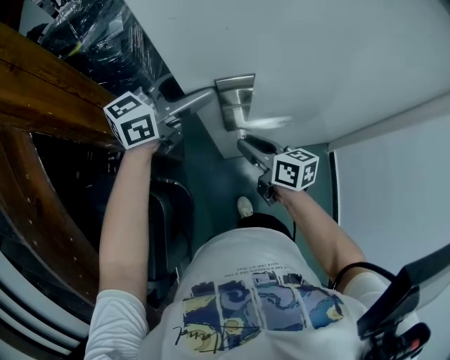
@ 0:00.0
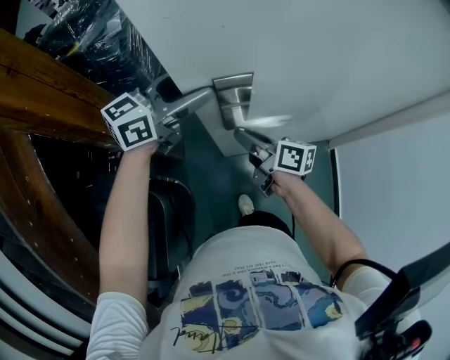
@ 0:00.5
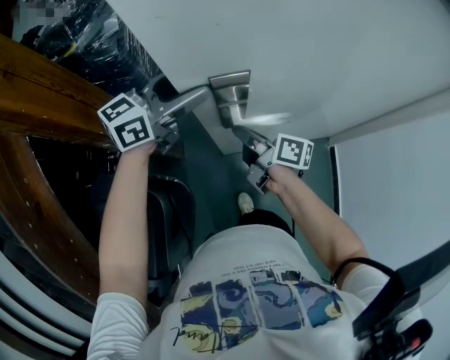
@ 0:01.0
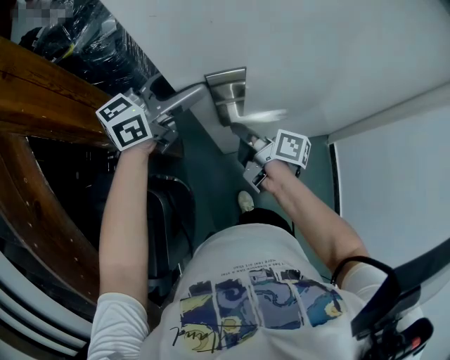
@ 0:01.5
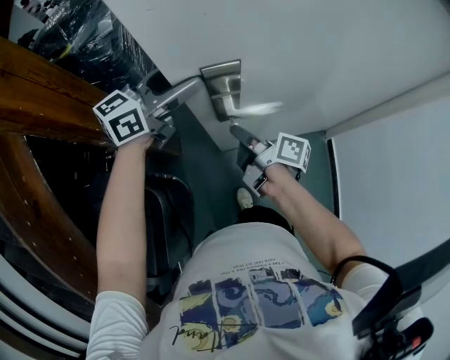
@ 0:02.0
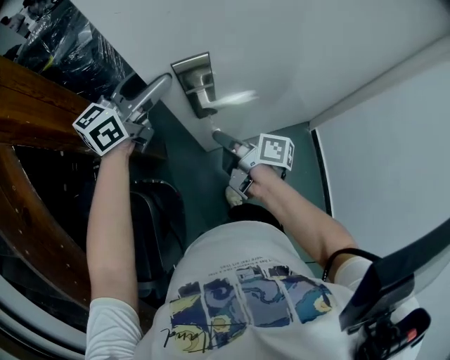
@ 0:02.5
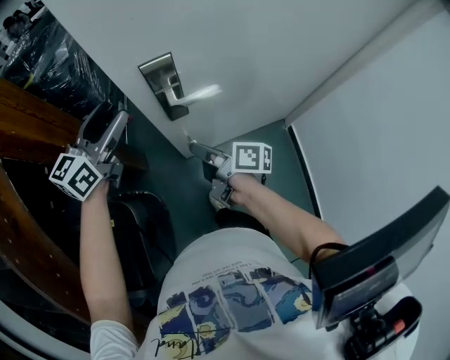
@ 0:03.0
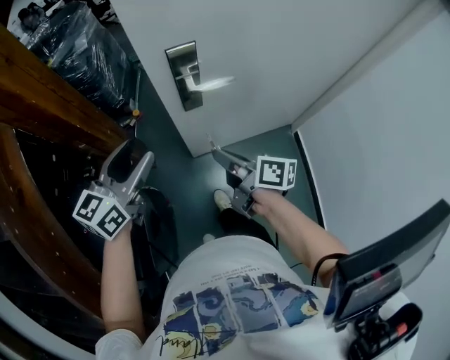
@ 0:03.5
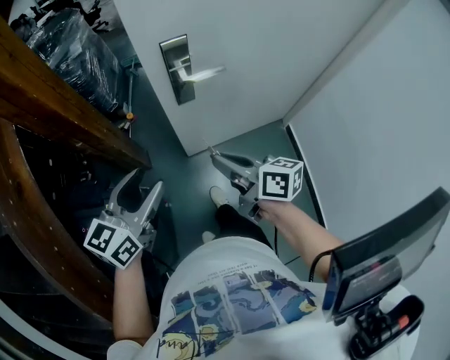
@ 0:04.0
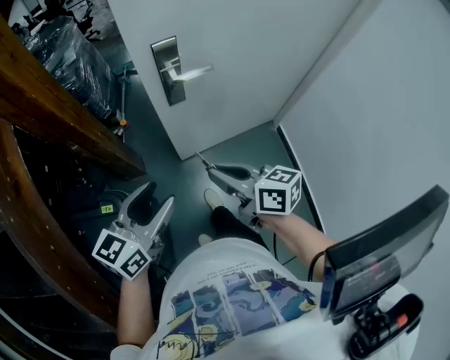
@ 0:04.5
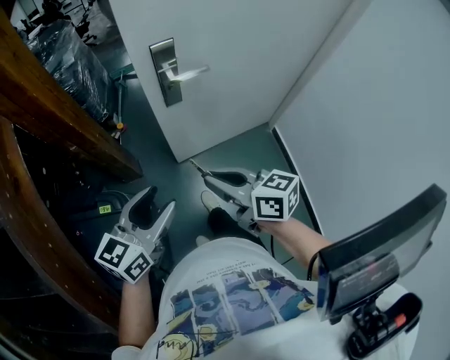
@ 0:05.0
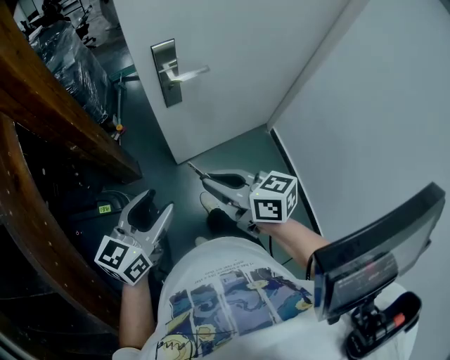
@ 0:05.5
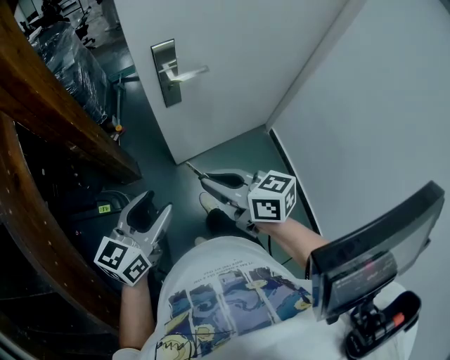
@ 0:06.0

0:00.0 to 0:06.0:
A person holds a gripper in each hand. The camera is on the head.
0:00.0 to 0:02.0: The right gripper twists roughly 40 degrees clockwise, seen from behind.
0:02.0 to 0:04.0: The right gripper goes about 25 cm backward and upward, and swivels approximately 40 degrees. The left gripper heads backward, covering roughly 30 cm.
0:04.0 to 0:06.0: The two grippers go roughly 10 cm backward.

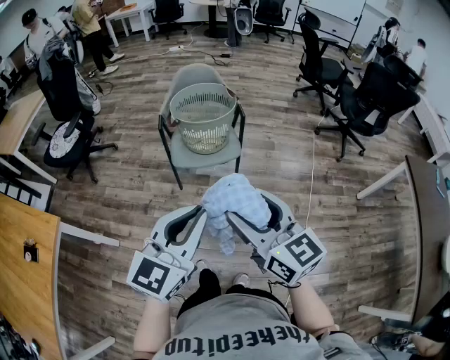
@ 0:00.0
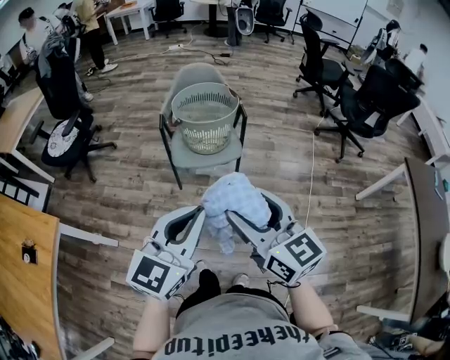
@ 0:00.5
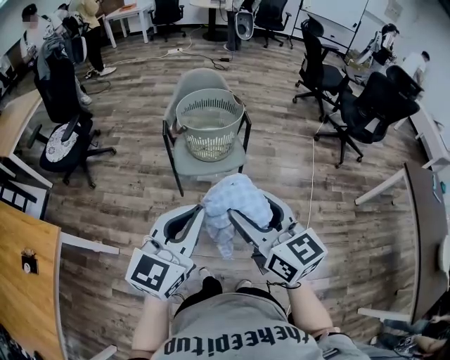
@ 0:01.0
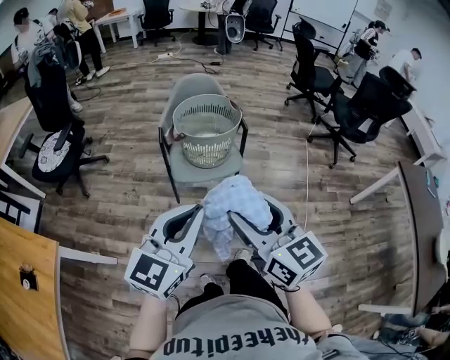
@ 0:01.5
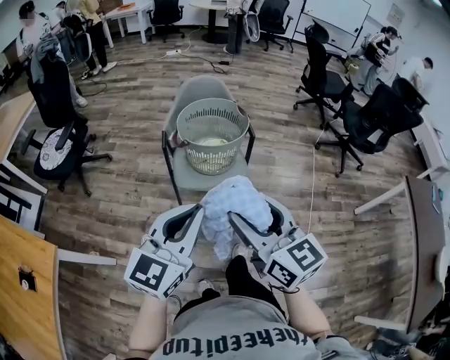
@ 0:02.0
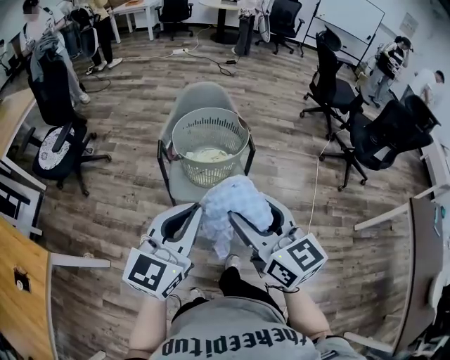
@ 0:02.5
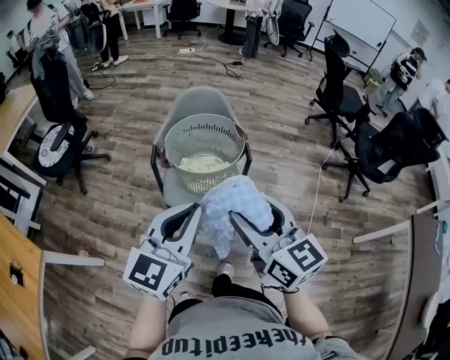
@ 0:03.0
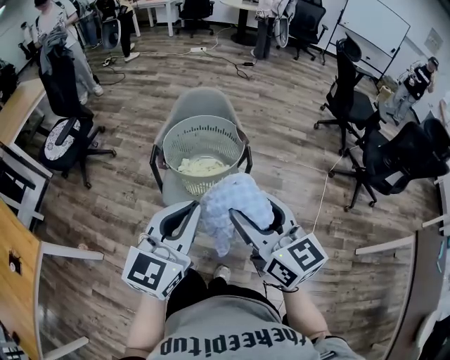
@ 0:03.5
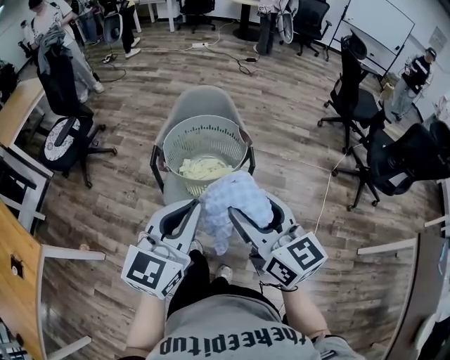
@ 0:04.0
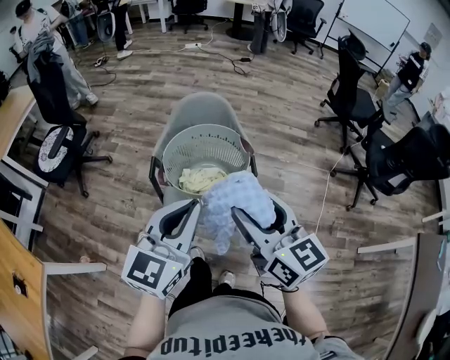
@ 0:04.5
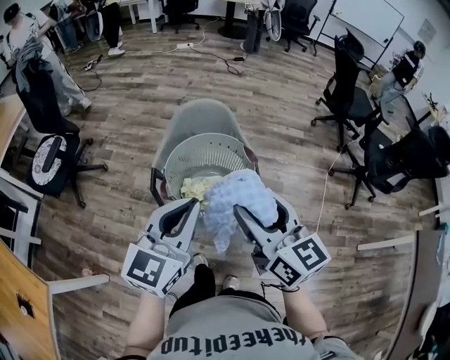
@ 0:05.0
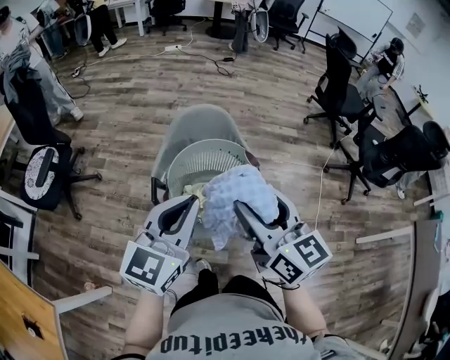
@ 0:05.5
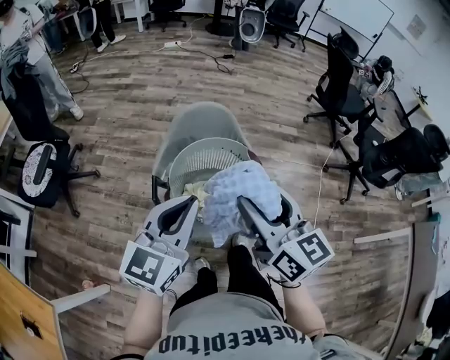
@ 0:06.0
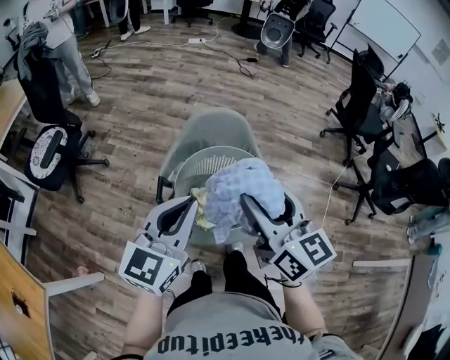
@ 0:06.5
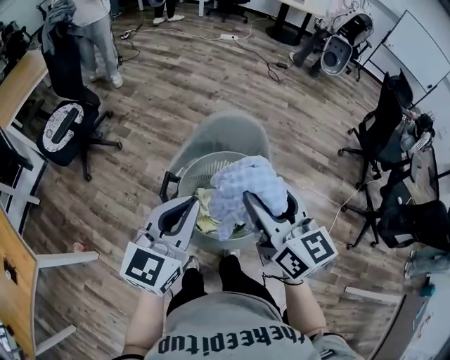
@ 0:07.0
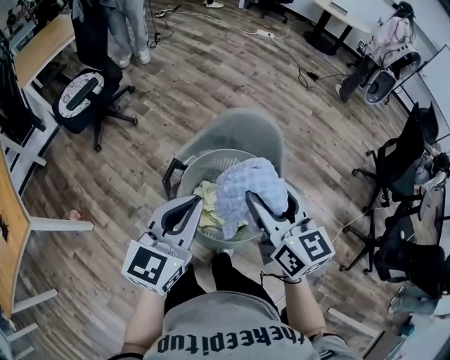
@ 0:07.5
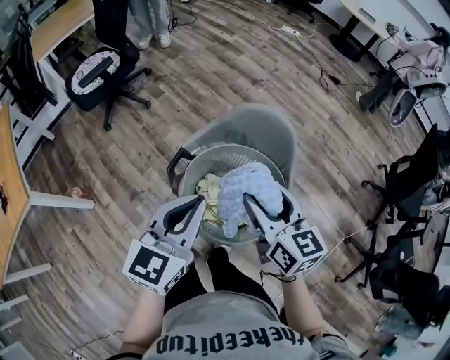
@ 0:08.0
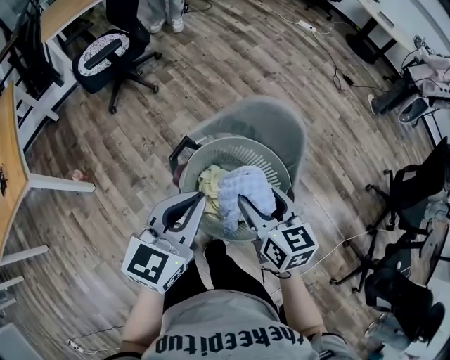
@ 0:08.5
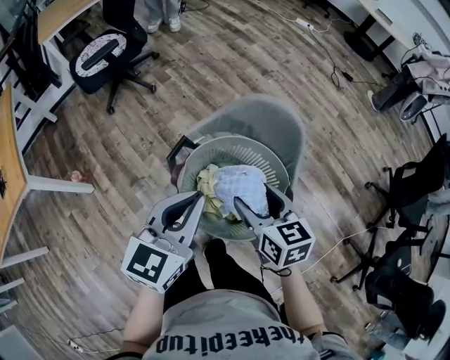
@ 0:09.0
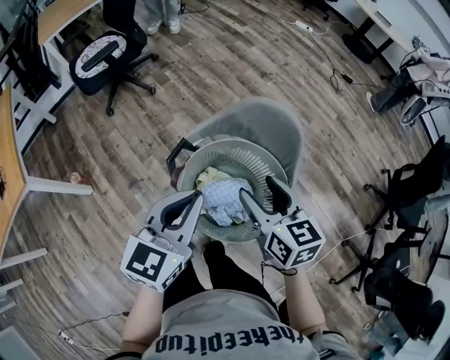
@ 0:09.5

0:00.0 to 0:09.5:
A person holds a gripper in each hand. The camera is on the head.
0:00.0 to 0:02.0: The two grippers go approximately 15 cm forward and to the left.
0:02.0 to 0:04.0: Both grippers travel together forward and to the right, approximately 20 cm.
0:04.0 to 0:05.5: The two grippers go roughly 15 cm forward and to the left.
0:05.5 to 0:07.5: The right gripper moves about 15 cm, and turns by some 30 degrees. The left gripper ends up approximately 10 cm from where it was, and changes its angle by some 30 degrees.
0:07.5 to 0:09.5: The right gripper shifts about 10 cm downward.

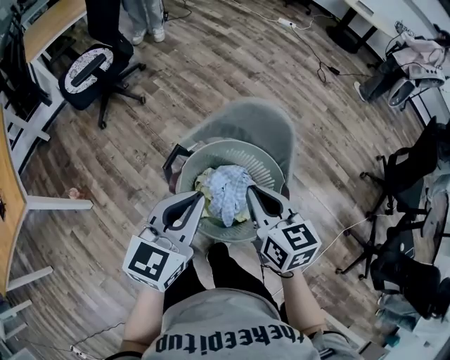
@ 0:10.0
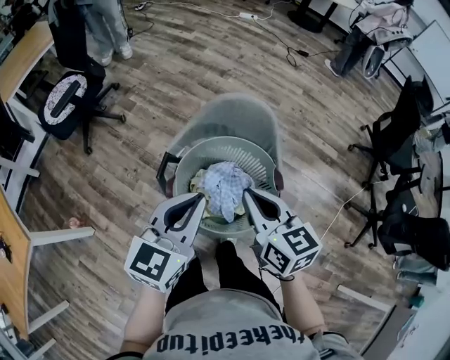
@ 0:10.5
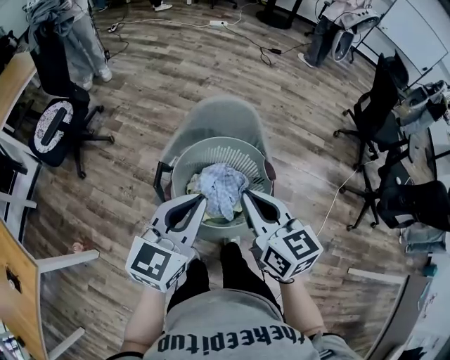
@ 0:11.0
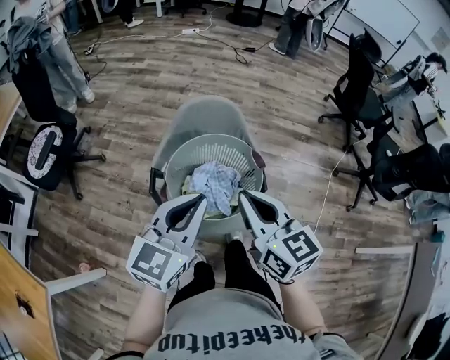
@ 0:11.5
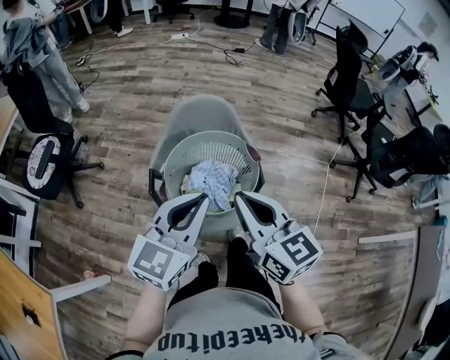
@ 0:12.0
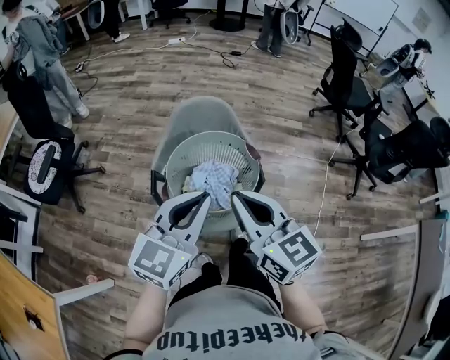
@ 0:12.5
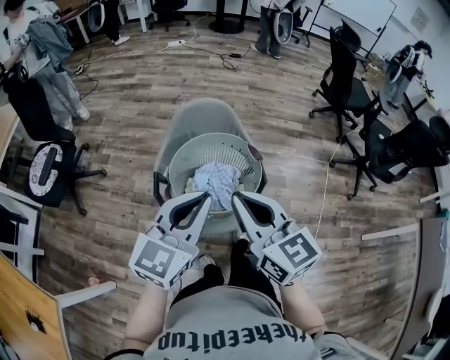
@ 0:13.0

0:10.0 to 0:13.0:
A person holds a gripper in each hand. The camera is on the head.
0:10.0 to 0:11.5: The right gripper moves about 15 cm, and rotates some 30 degrees; the left gripper changes place by about 10 cm, and swivels approximately 30 degrees.
0:11.5 to 0:13.0: The right gripper goes some 5 cm backward.

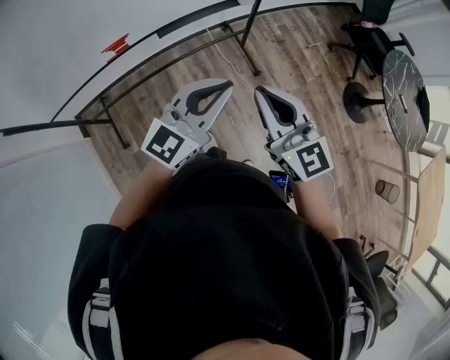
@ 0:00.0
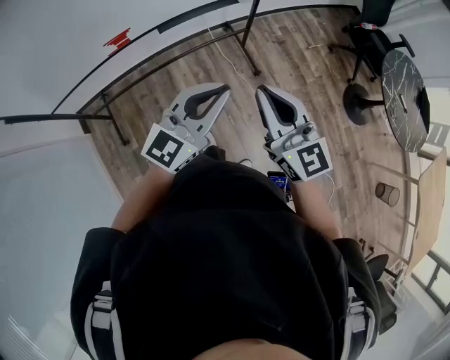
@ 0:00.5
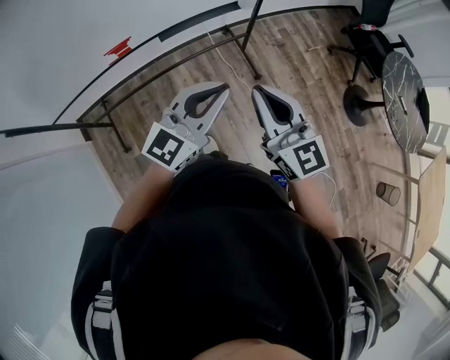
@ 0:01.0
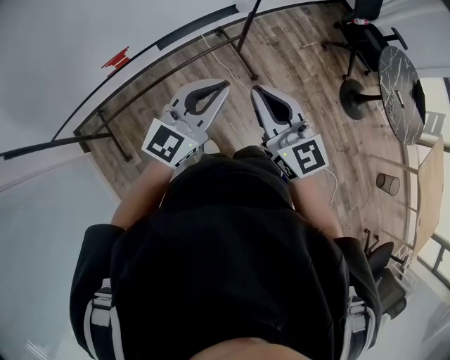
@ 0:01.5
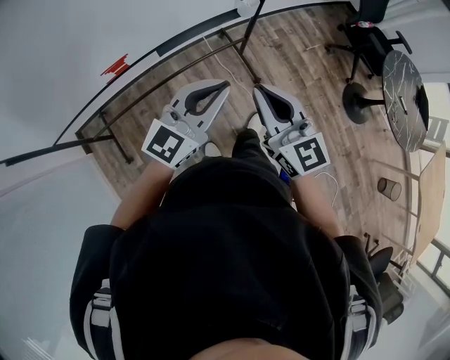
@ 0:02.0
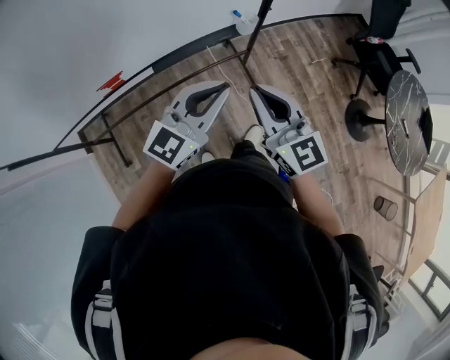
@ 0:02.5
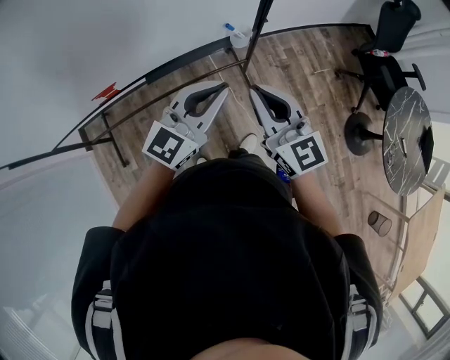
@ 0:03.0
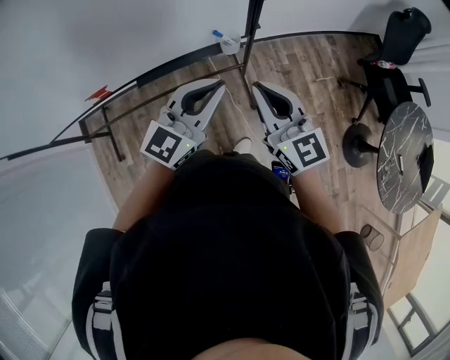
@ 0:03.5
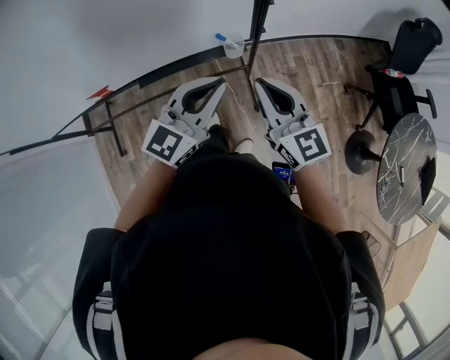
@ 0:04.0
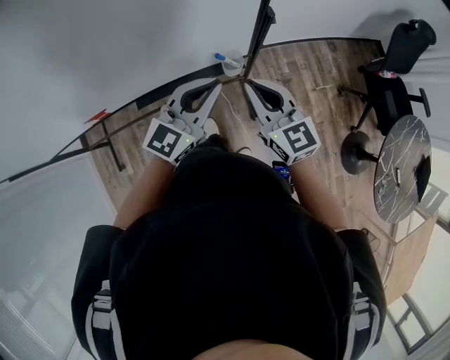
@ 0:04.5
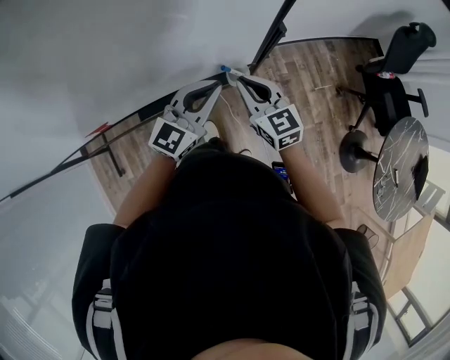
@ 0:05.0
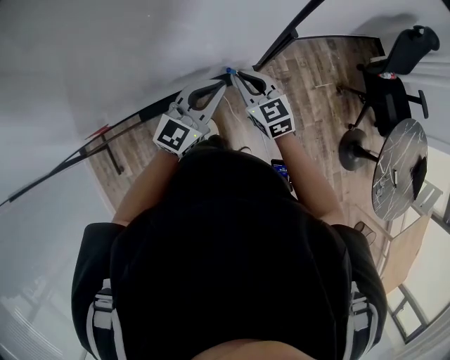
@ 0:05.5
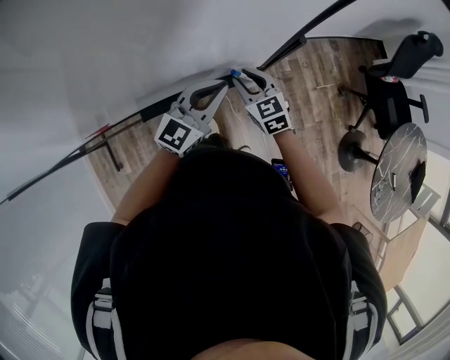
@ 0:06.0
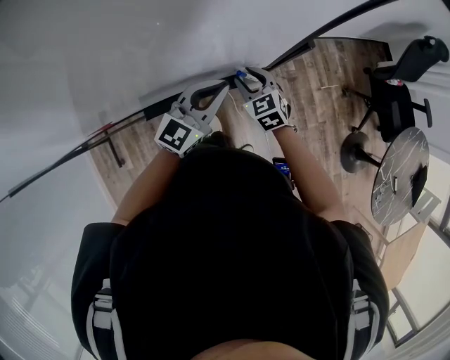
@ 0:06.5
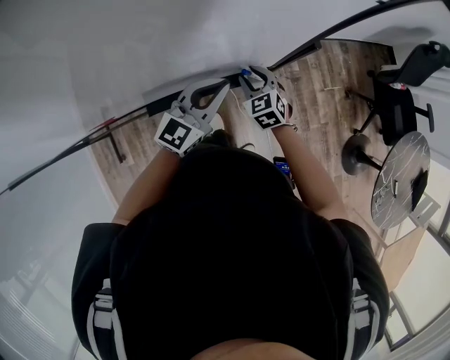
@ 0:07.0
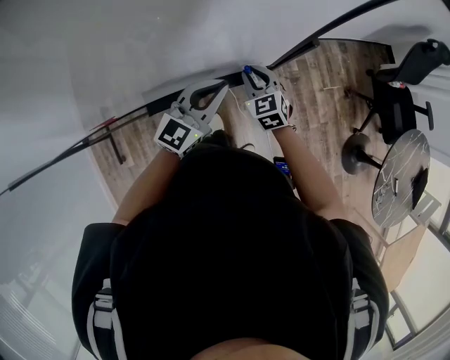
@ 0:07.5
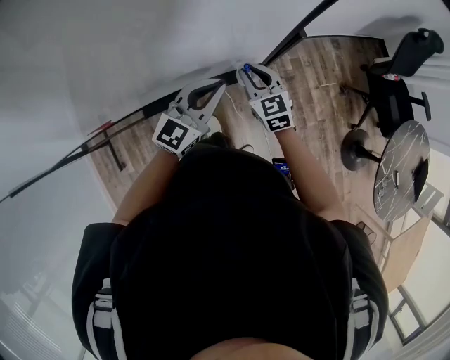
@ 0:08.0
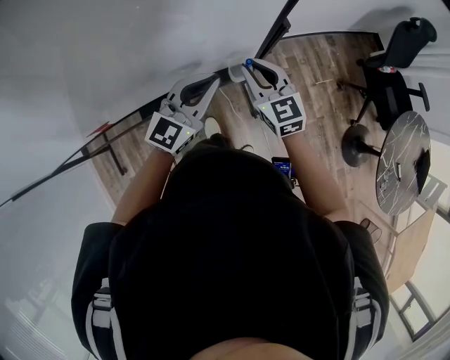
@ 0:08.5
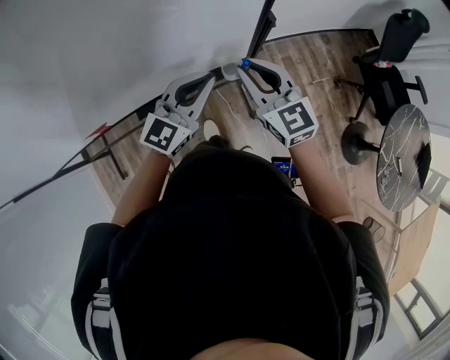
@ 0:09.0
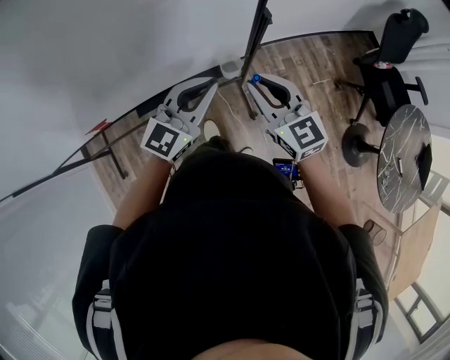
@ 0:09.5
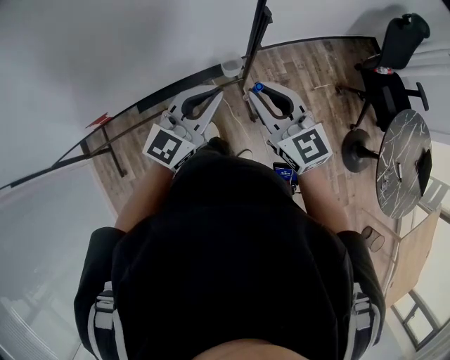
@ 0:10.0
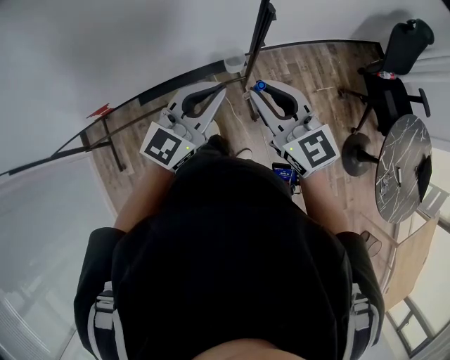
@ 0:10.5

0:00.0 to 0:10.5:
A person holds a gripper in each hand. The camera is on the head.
0:00.0 to 0:02.0: Both grippers travel together forward, roughly 10 cm.
0:02.0 to 0:04.0: The two grippers go roughly 30 cm forward and to the right.
0:04.0 to 0:06.5: The left gripper moves forward, downward and to the left, about 20 cm; the right gripper heads downward, forward and to the left, covering about 30 cm, points its fingers approximately 40 degrees further downward, and opens its fingers.
0:06.5 to 0:08.5: The right gripper heads upward, covering about 15 cm, and rotates approximately 20 degrees.
0:08.5 to 0:10.5: The left gripper shifts some 10 cm backward and upward; the right gripper moves backward and upward, some 20 cm.
